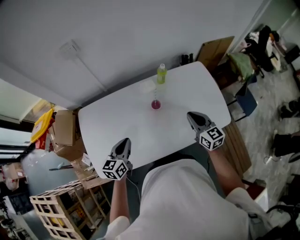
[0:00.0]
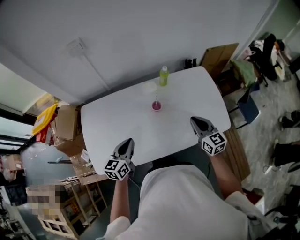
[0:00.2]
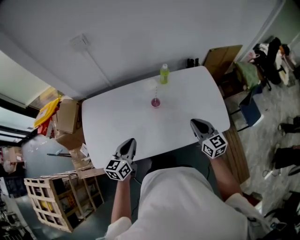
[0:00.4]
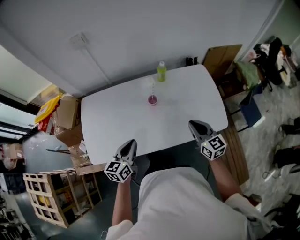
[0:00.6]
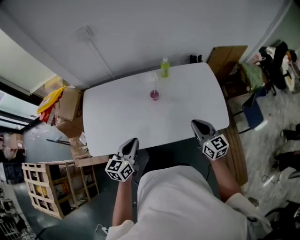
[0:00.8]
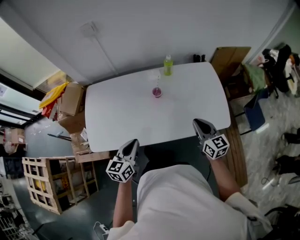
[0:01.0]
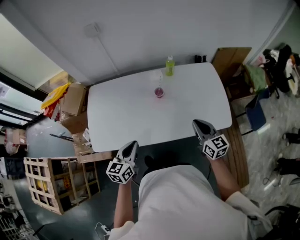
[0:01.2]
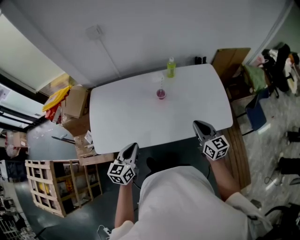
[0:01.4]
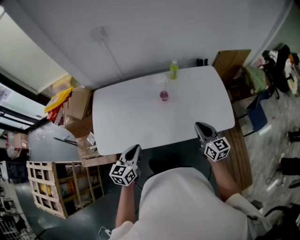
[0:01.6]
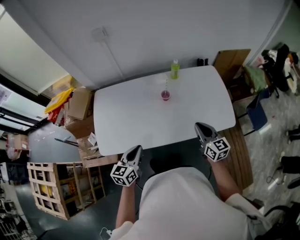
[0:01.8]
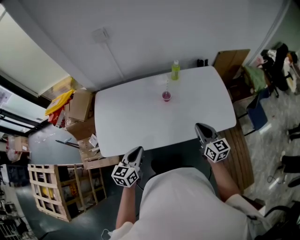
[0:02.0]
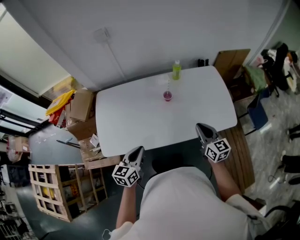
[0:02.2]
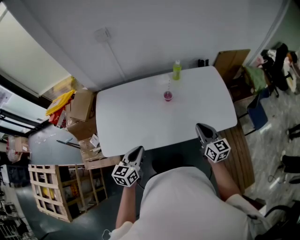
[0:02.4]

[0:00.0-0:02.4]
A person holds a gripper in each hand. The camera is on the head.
0:00.0 to 0:01.2: The left gripper goes roughly 15 cm backward and to the right; the right gripper heads backward, covering some 10 cm.
0:01.2 to 0:02.4: The right gripper moves about 5 cm, while the left gripper moves about 5 cm.

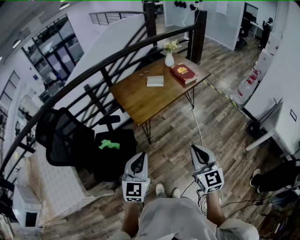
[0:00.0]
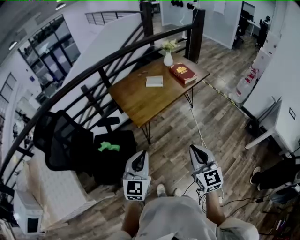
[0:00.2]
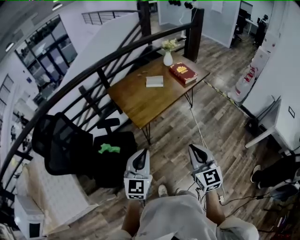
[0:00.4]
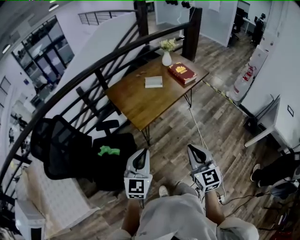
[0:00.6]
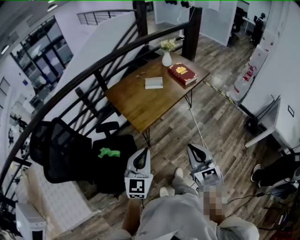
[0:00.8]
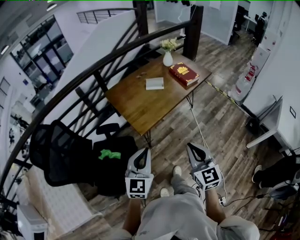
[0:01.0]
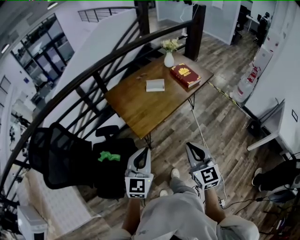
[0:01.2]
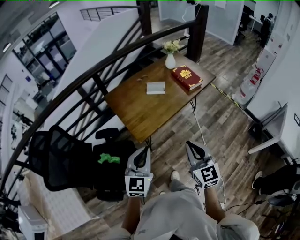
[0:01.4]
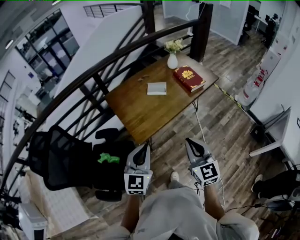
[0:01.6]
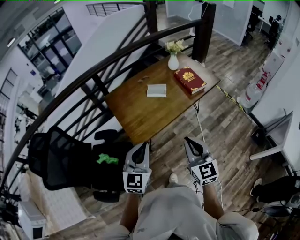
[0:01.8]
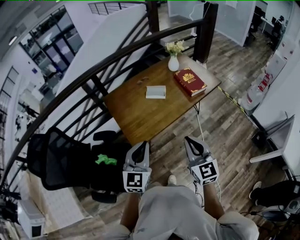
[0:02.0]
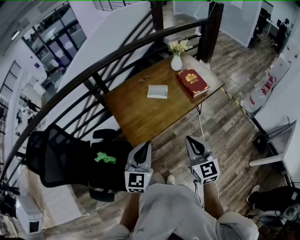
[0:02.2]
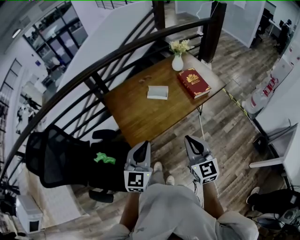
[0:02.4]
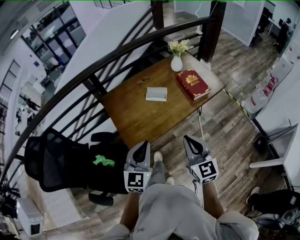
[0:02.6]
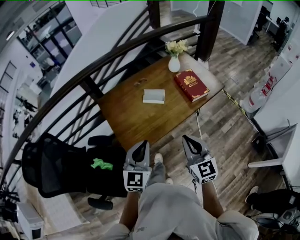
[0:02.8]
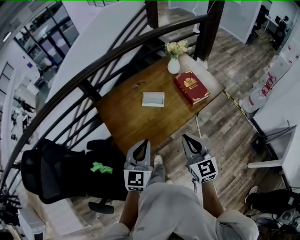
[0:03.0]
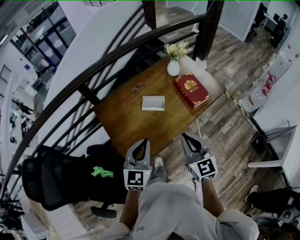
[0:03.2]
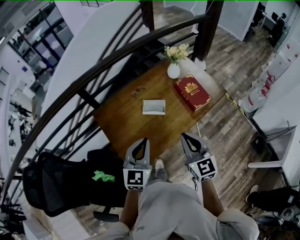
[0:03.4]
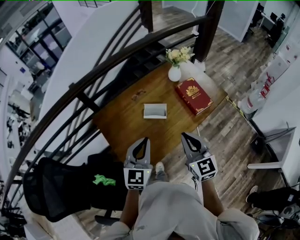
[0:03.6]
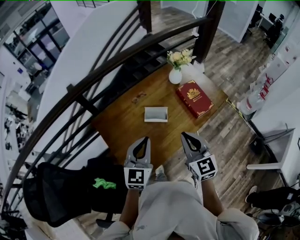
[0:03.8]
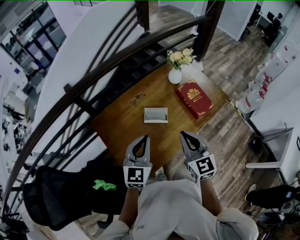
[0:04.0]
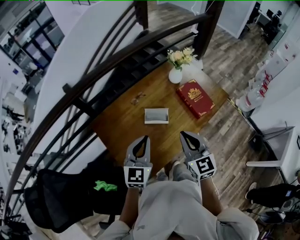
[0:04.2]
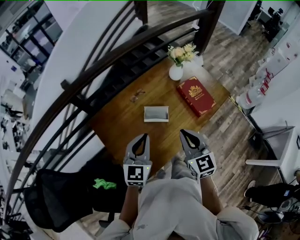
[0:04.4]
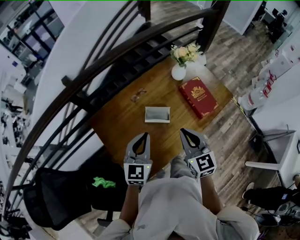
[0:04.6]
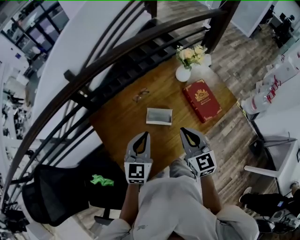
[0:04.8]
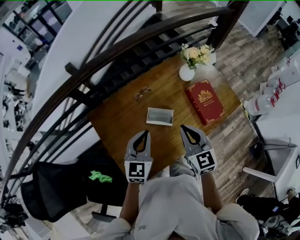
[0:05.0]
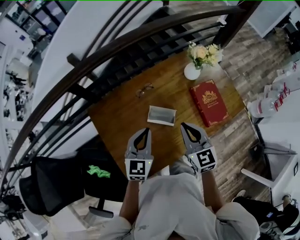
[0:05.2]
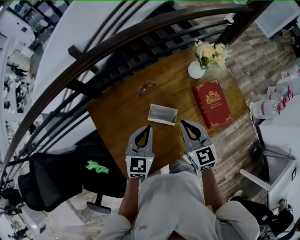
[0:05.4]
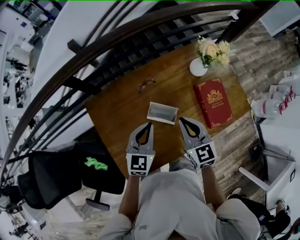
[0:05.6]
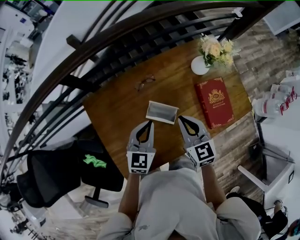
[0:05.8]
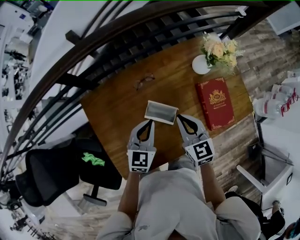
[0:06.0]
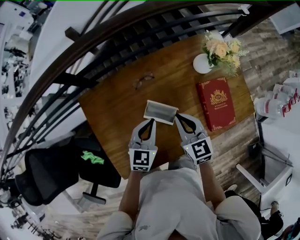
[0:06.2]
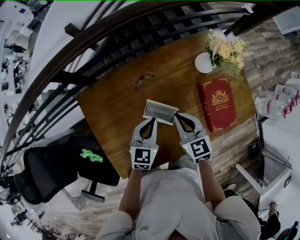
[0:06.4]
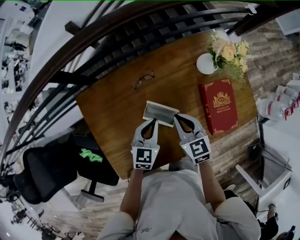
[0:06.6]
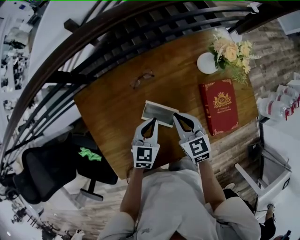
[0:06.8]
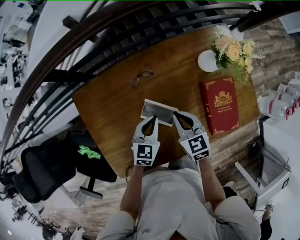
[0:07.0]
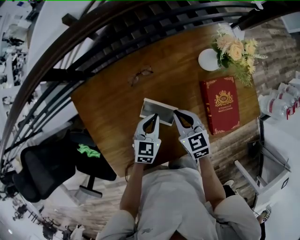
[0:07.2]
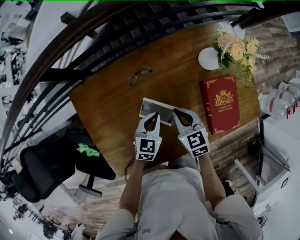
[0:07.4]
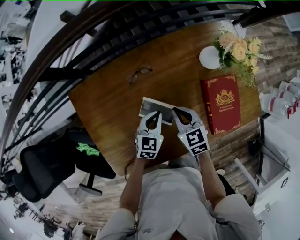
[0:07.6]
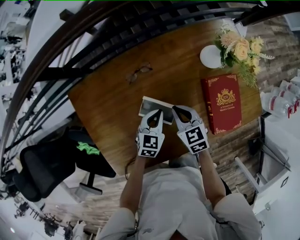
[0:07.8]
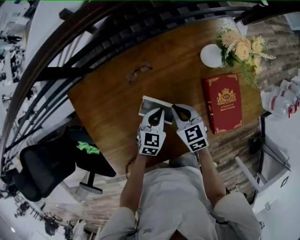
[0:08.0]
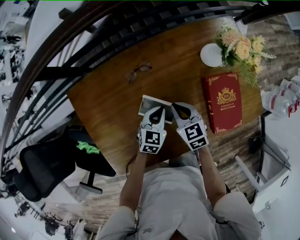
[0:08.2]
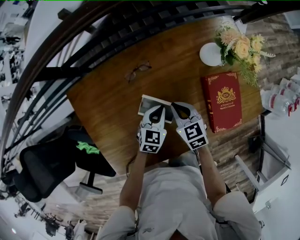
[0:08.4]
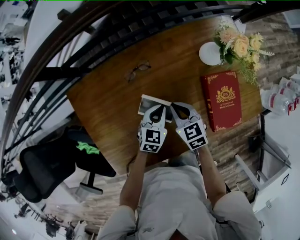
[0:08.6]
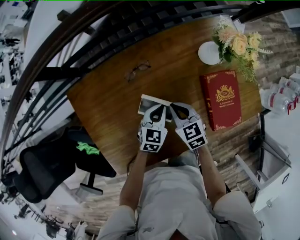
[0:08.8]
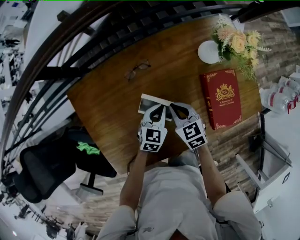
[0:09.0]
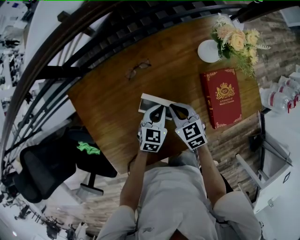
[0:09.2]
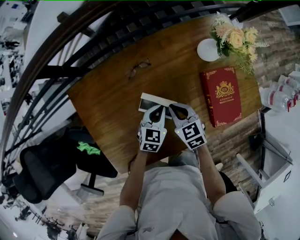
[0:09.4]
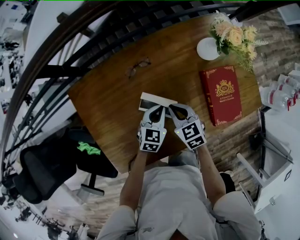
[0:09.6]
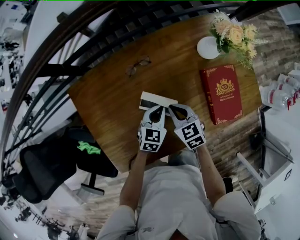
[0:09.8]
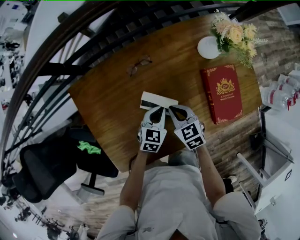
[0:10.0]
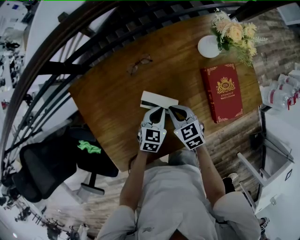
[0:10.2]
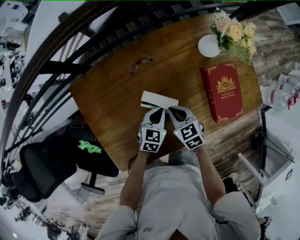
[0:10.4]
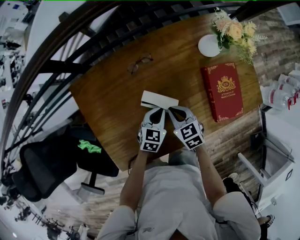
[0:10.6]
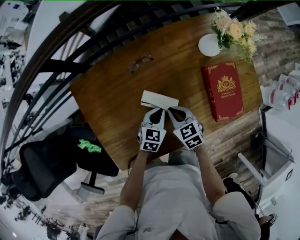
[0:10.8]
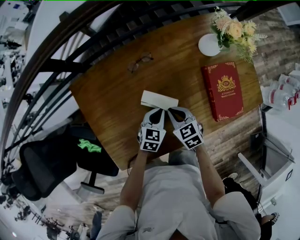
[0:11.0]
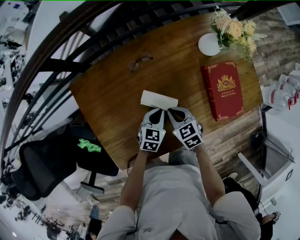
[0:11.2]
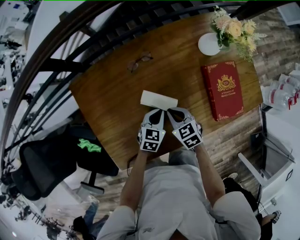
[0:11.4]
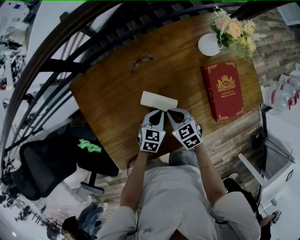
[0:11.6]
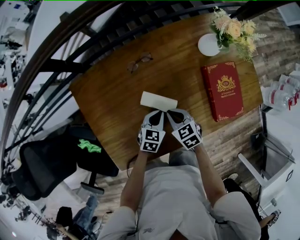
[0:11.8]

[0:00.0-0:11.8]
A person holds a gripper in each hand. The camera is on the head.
0:00.0 to 0:01.4: Both grippers move forward, approximately 20 cm.
0:01.4 to 0:03.0: Both grippers travel together forward, some 25 cm.
0:03.0 to 0:04.4: The two grippers go approximately 20 cm forward.
0:04.4 to 0:06.0: The two grippers go some 20 cm forward and downward. The right gripper changes its angle by some 20 degrees.
0:06.0 to 0:07.4: The two grippers go approximately 10 cm downward.
0:07.4 to 0:08.8: The grippers stay close to where they were, moving slightly.
0:08.8 to 0:10.4: The left gripper moves about 5 cm. The right gripper travels backward by roughly 5 cm.
0:10.4 to 0:11.8: The grippers move only a little.

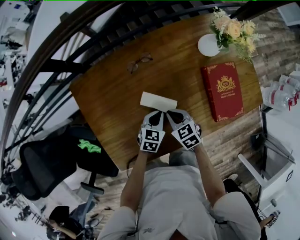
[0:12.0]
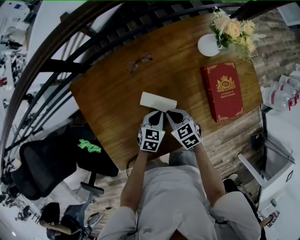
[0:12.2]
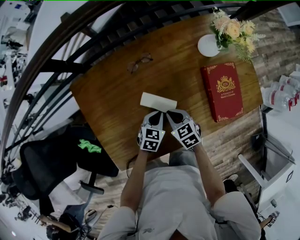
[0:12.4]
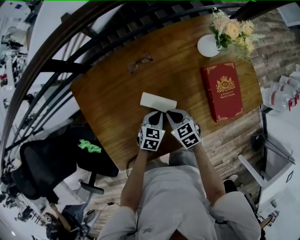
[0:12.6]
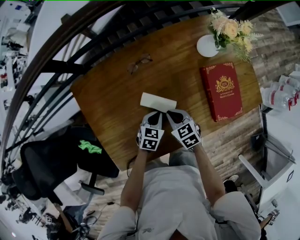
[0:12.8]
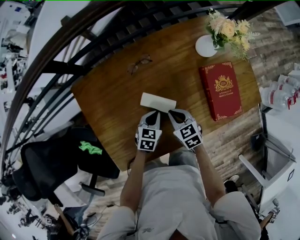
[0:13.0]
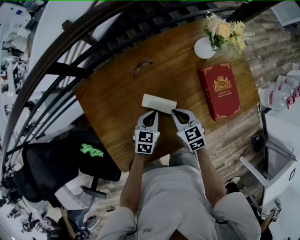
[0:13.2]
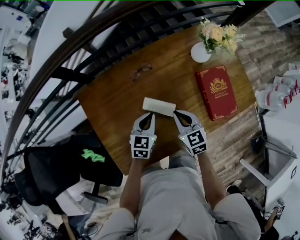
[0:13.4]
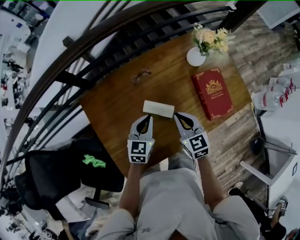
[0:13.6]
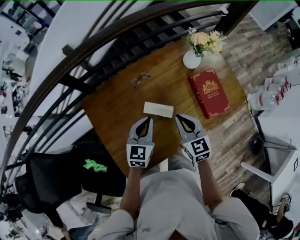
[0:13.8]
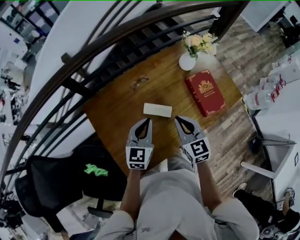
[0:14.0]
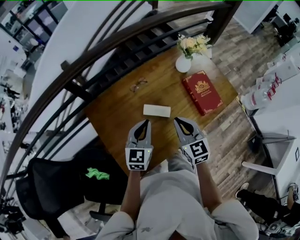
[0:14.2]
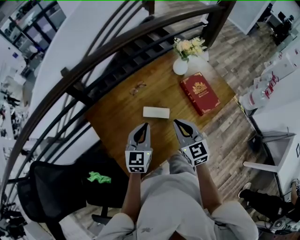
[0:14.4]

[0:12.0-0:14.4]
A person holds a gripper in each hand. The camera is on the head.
0:12.0 to 0:13.2: The left gripper changes place by approximately 5 cm.
0:13.2 to 0:14.4: The left gripper moves upward, about 20 cm, and rotates roughly 30 degrees. Meanwhile the right gripper is displaced upward and backward by roughly 20 cm, and turns by approximately 30 degrees.

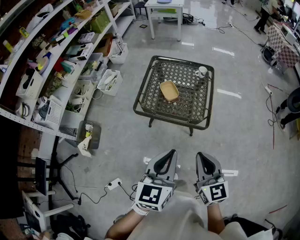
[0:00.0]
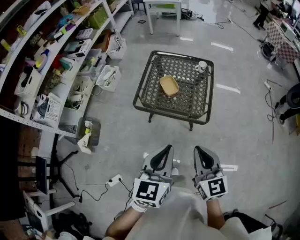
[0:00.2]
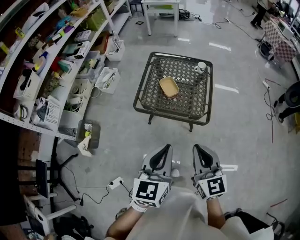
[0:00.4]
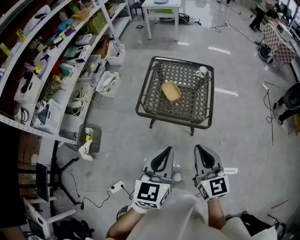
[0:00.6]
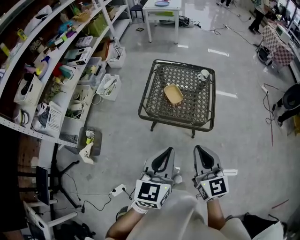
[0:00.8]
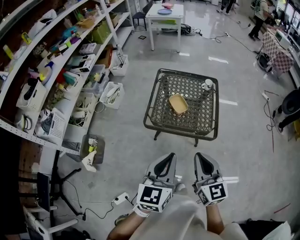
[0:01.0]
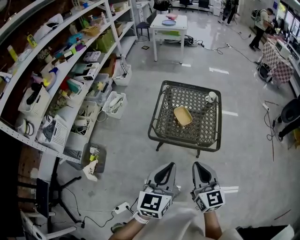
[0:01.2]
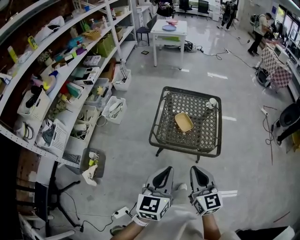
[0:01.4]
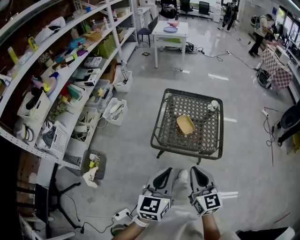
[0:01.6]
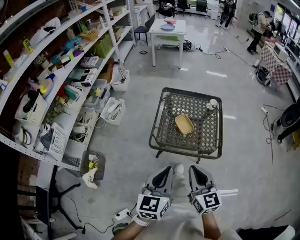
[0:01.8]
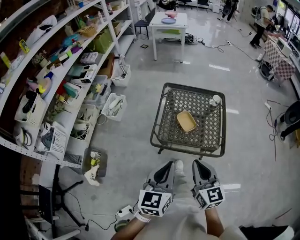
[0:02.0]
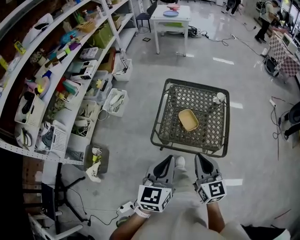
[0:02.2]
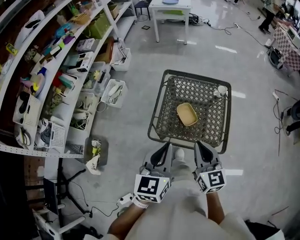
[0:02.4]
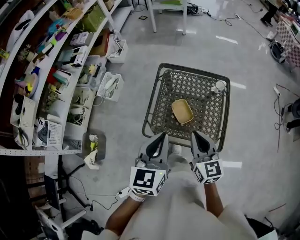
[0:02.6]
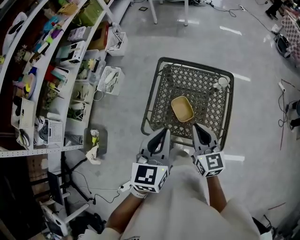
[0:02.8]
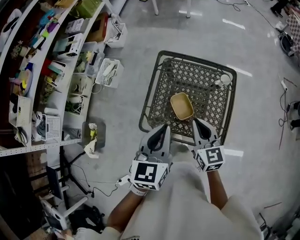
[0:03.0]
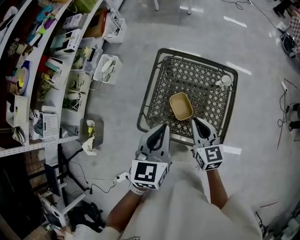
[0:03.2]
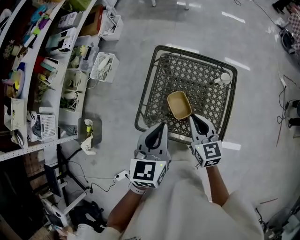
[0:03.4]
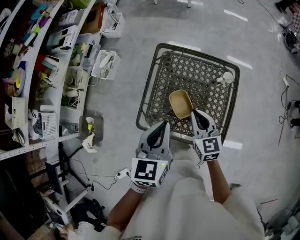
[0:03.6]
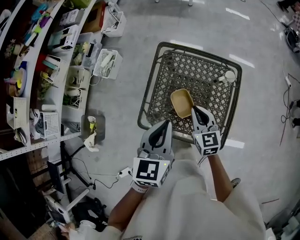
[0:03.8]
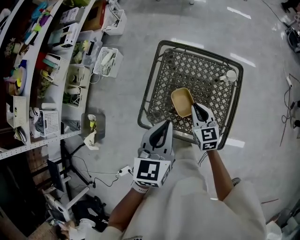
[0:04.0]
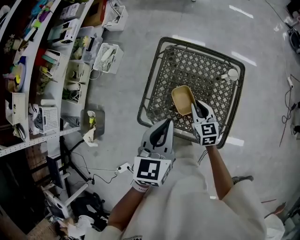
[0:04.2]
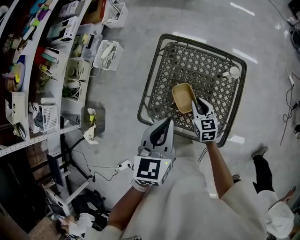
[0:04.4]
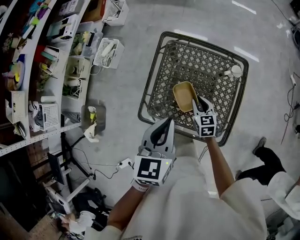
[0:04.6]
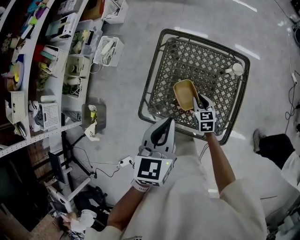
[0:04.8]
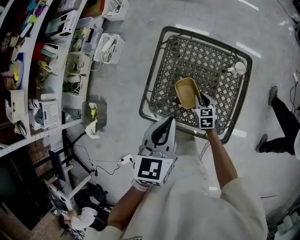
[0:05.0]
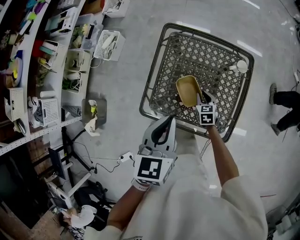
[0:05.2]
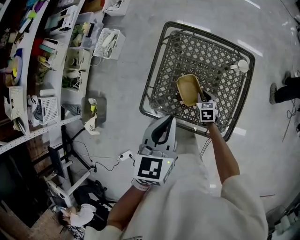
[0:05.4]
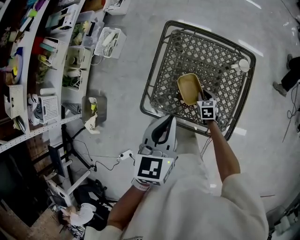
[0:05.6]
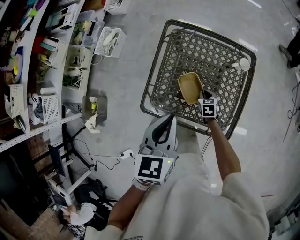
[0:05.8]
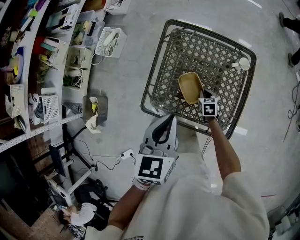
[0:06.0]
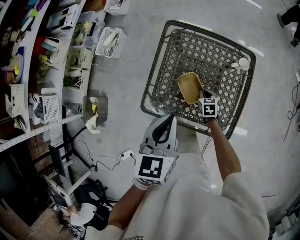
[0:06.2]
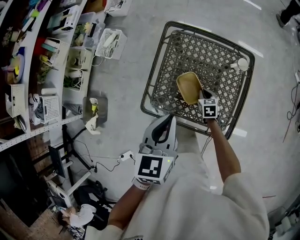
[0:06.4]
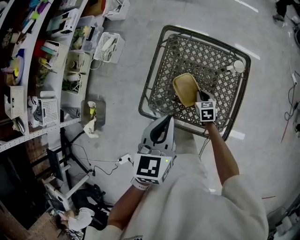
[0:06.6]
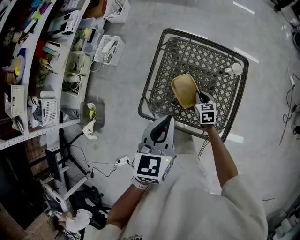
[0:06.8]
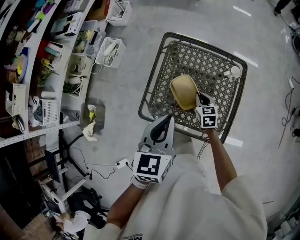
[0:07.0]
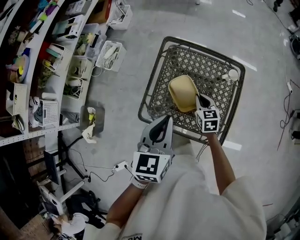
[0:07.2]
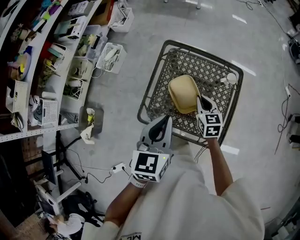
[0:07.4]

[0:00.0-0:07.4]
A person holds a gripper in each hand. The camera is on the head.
0:00.0 to 0:01.4: The right gripper goes some 20 cm to the left and forward. Meanwhile the left gripper moves to the left, some 20 cm.
0:01.4 to 0:03.0: The grippers both shift forward by roughly 30 cm.
0:03.0 to 0:04.4: The right gripper heads downward and forward, covering roughly 20 cm; the left gripper changes place by approximately 5 cm.
0:04.4 to 0:06.0: The right gripper moves downward, about 15 cm, and swivels approximately 20 degrees.
0:06.0 to 0:07.4: The right gripper heads upward, covering roughly 20 cm, and changes its angle by some 20 degrees.
